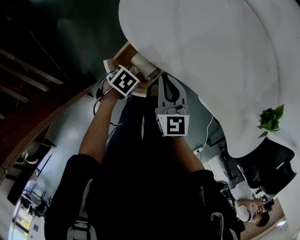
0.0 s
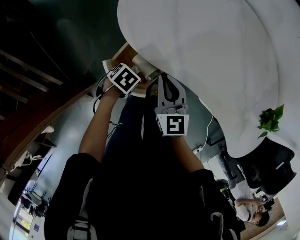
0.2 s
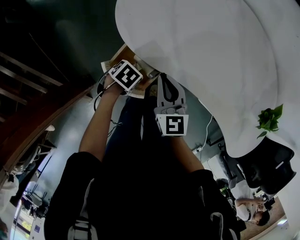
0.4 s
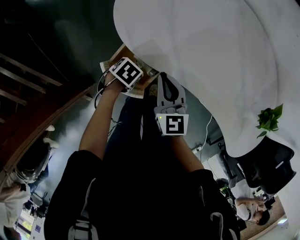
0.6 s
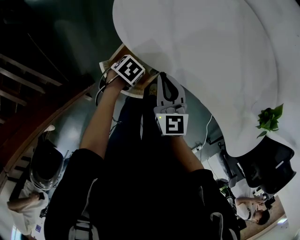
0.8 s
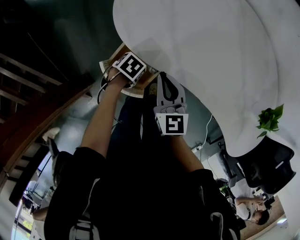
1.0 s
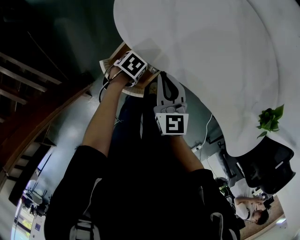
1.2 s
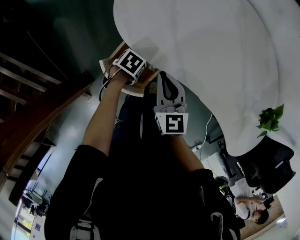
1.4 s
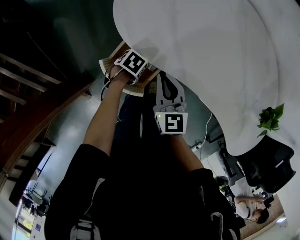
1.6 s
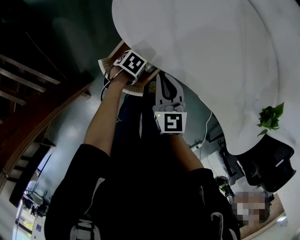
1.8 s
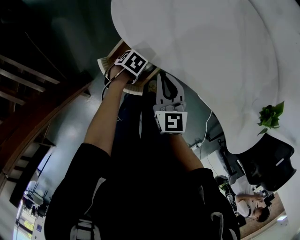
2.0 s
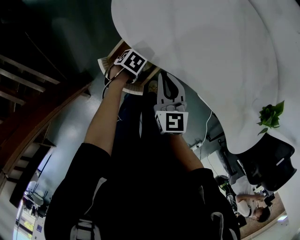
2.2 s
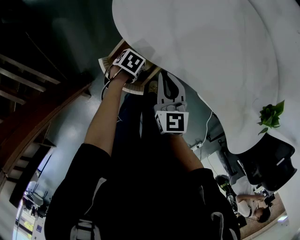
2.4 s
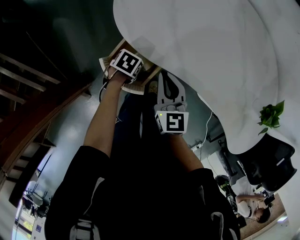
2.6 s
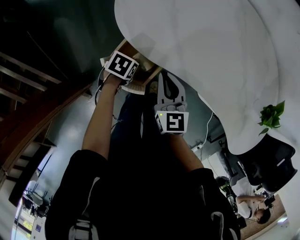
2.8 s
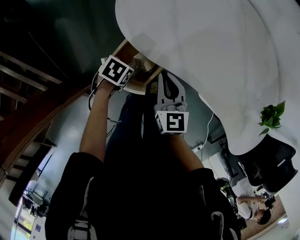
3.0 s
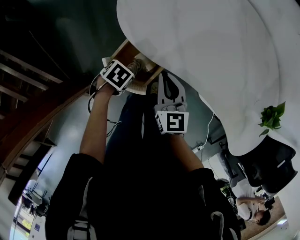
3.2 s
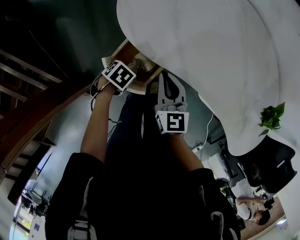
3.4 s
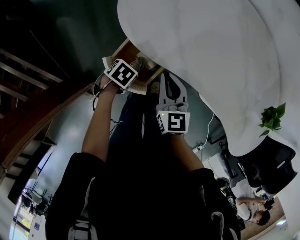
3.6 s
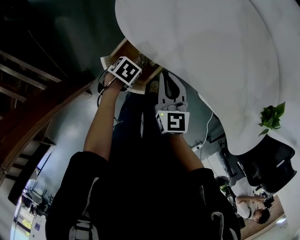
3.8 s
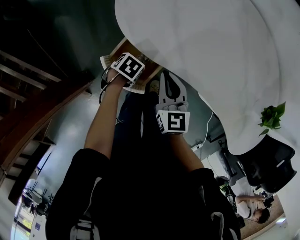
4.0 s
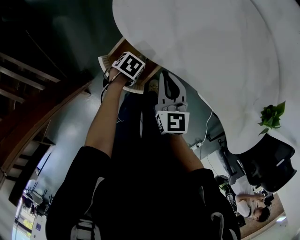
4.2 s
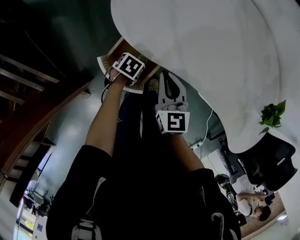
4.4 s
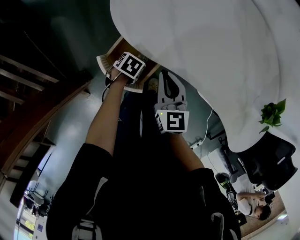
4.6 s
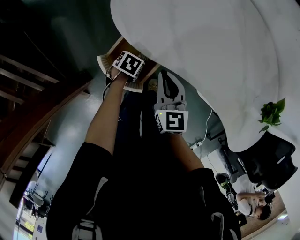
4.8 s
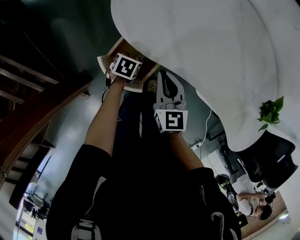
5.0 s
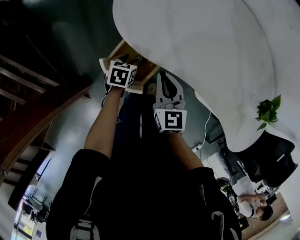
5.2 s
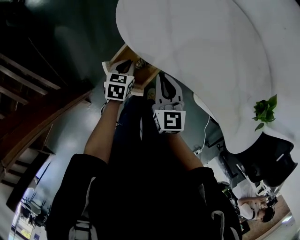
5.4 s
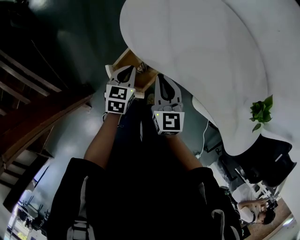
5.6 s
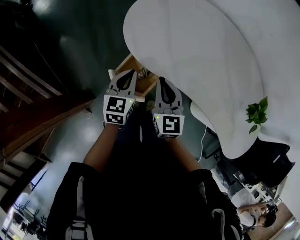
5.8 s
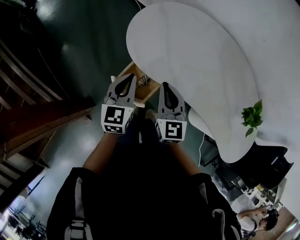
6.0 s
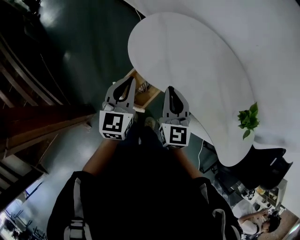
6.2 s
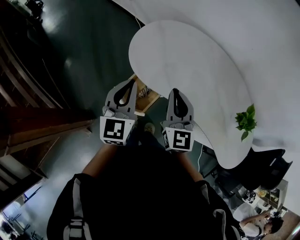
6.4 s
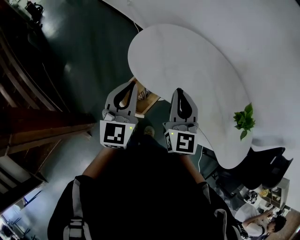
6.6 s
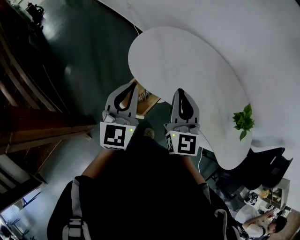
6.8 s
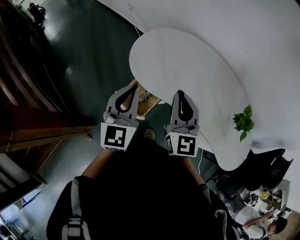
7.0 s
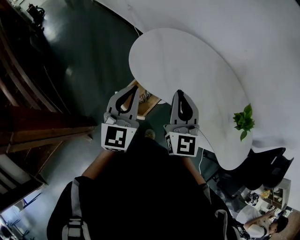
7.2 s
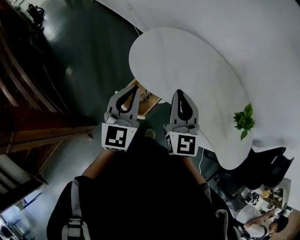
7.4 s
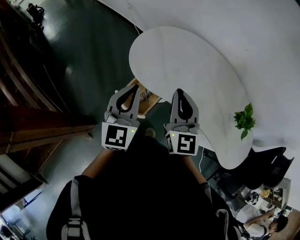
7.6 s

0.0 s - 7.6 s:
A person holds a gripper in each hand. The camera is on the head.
0.0 s - 1.6 s: The left gripper changes place by roughly 5 cm.
1.6 s - 3.0 s: The left gripper moves upward, approximately 5 cm.
3.0 s - 4.6 s: The left gripper shifts roughly 10 cm downward, and closes.
4.6 s - 6.0 s: The right gripper goes approximately 15 cm upward; the left gripper moves upward, roughly 35 cm, angles its fingers upward, by about 60 degrees, and closes up.
6.0 s - 7.6 s: The grippers both shift upward by some 15 cm.

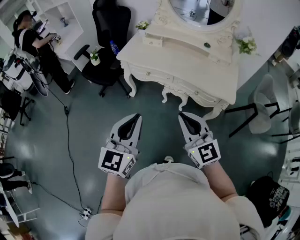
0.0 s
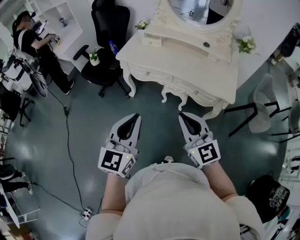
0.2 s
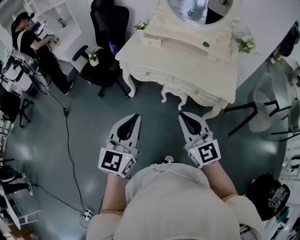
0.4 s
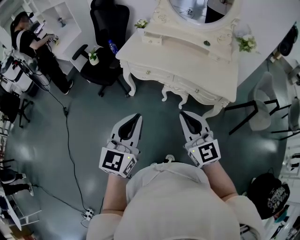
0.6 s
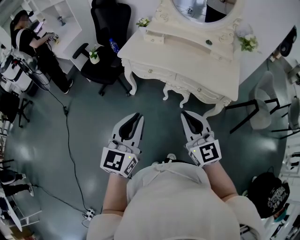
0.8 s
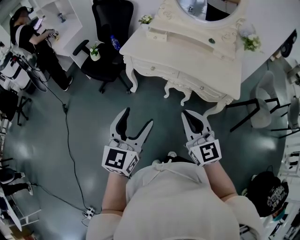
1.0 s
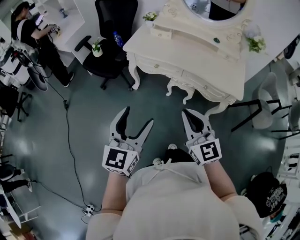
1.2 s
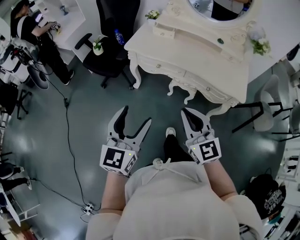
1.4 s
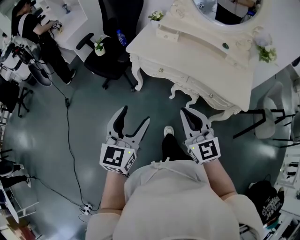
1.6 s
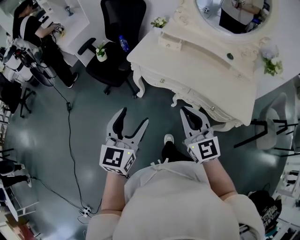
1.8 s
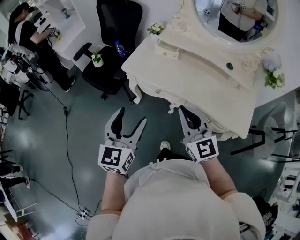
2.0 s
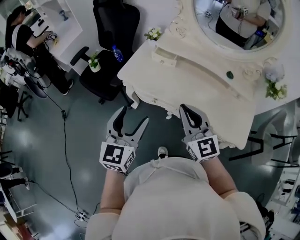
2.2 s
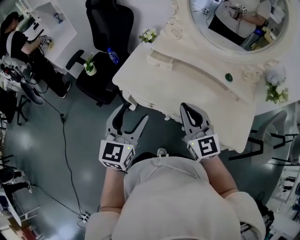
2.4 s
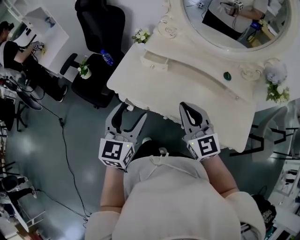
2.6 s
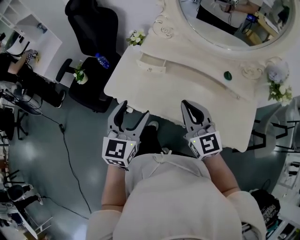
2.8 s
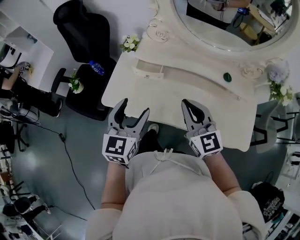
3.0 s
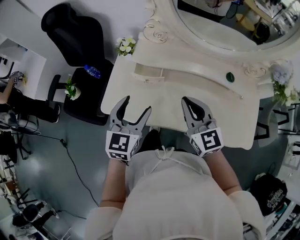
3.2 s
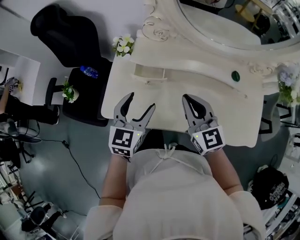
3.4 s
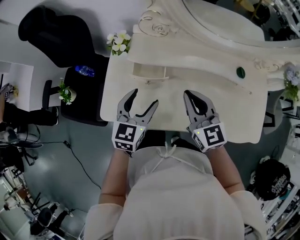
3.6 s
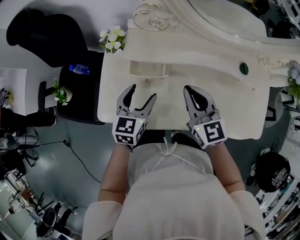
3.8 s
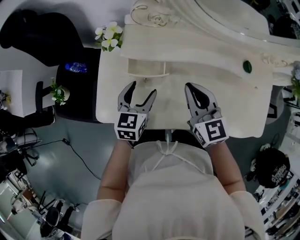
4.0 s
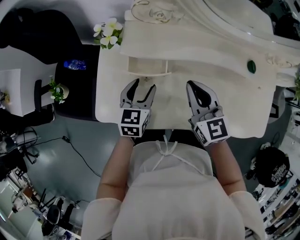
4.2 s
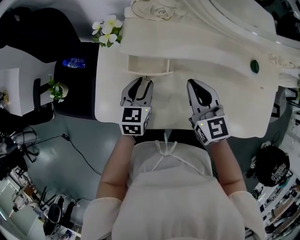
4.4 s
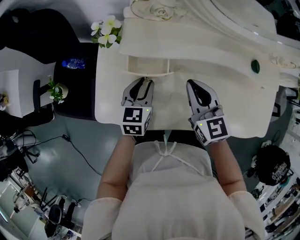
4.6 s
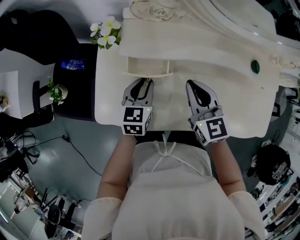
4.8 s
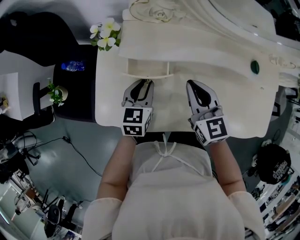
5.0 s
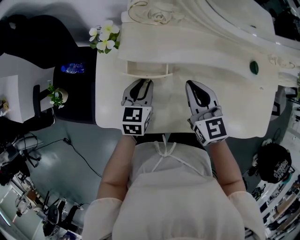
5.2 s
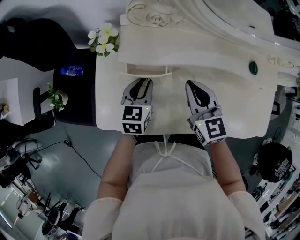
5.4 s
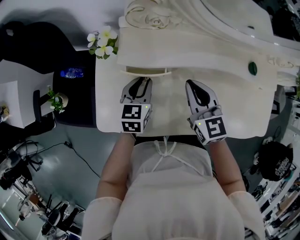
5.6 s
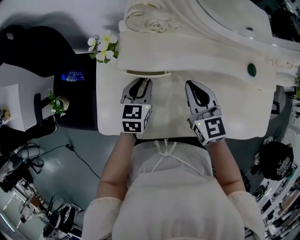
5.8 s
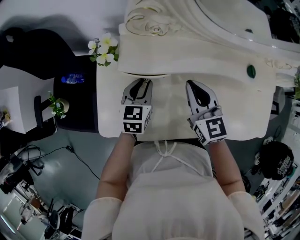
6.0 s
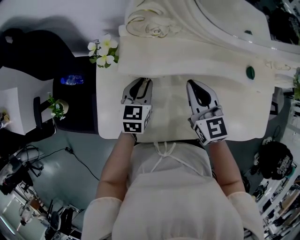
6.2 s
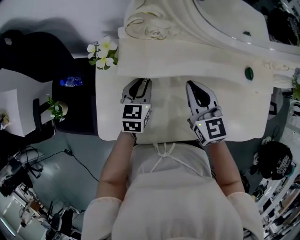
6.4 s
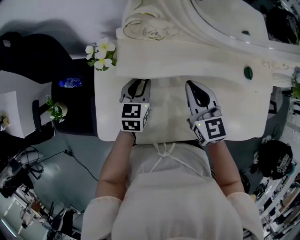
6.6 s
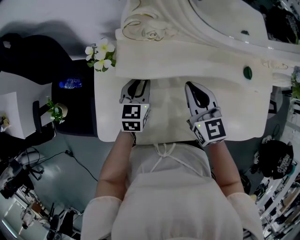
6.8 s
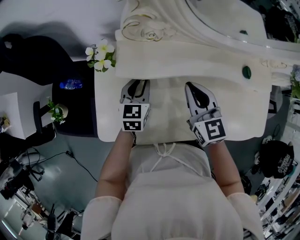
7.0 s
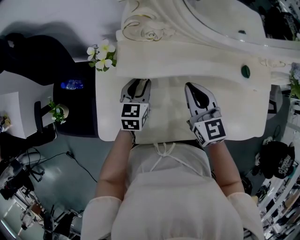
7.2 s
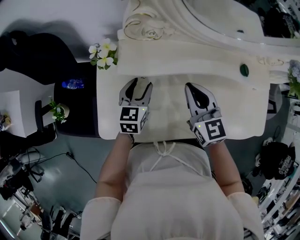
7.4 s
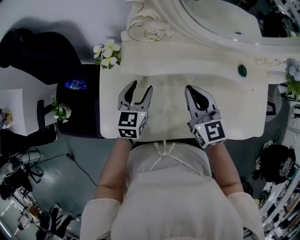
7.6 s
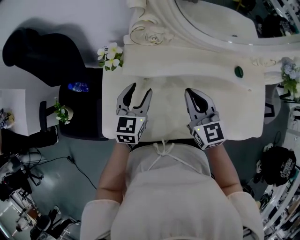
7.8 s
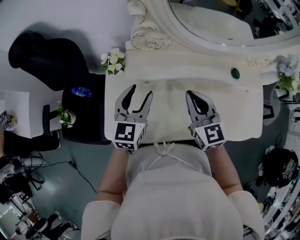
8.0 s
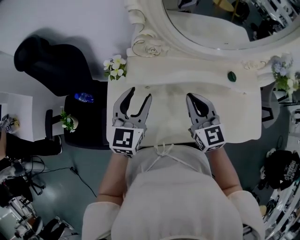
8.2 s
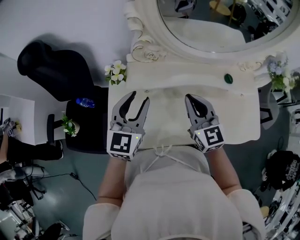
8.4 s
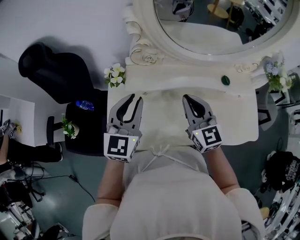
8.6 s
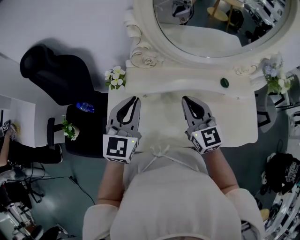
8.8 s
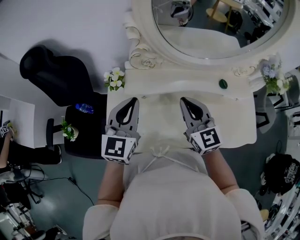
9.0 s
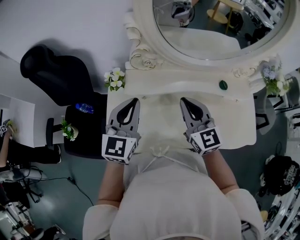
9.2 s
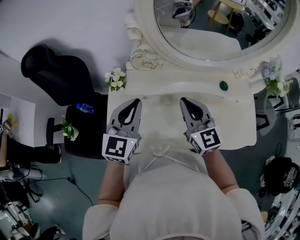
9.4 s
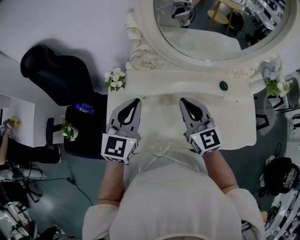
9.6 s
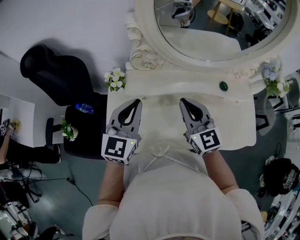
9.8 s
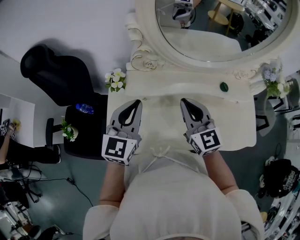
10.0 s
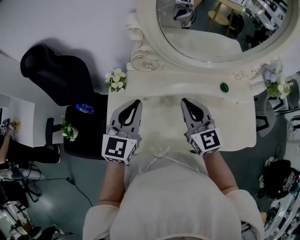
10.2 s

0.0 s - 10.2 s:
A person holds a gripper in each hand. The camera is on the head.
0.0 s - 1.4 s: The grippers both shift to the left by about 10 cm. The left gripper opens.
1.4 s - 3.0 s: The pair of grippers is taken forward, approximately 50 cm.
3.0 s - 4.4 s: The left gripper heads downward and forward, covering about 30 cm, turns by about 20 degrees, and closes up. Meanwhile the right gripper shifts approximately 20 cm forward and downward.
4.4 s - 5.8 s: The left gripper is displaced forward by about 5 cm.
5.8 s - 7.2 s: The grippers move only a little.
7.2 s - 8.8 s: The right gripper heads upward and backward, covering roughly 15 cm; the left gripper is displaced upward by roughly 25 cm, and rotates about 30 degrees.
8.8 s - 10.2 s: The grippers make only small movements.

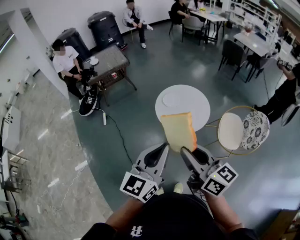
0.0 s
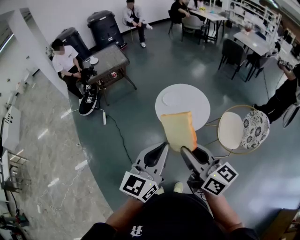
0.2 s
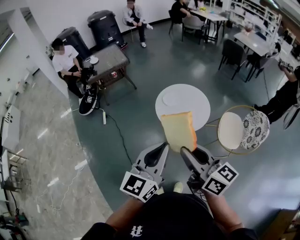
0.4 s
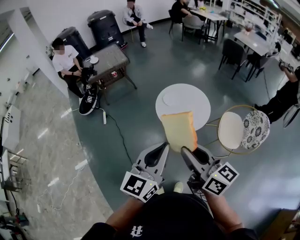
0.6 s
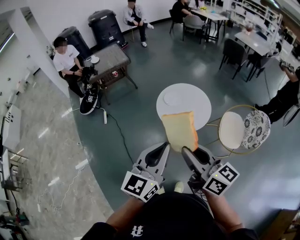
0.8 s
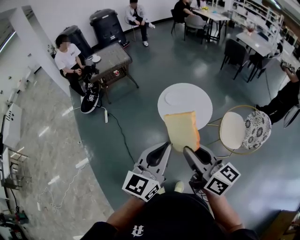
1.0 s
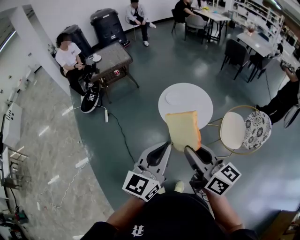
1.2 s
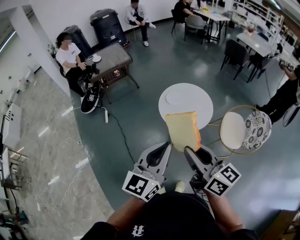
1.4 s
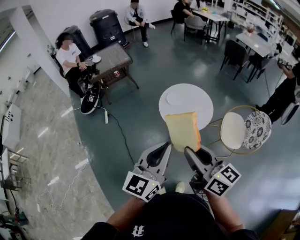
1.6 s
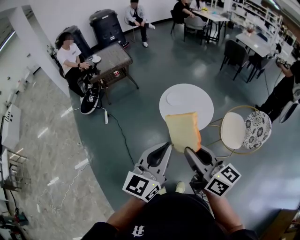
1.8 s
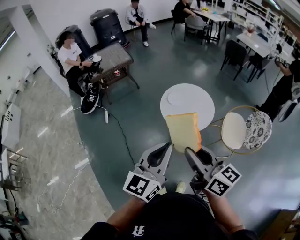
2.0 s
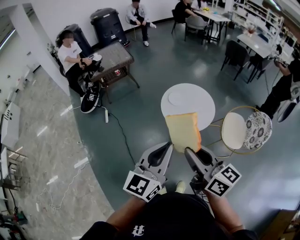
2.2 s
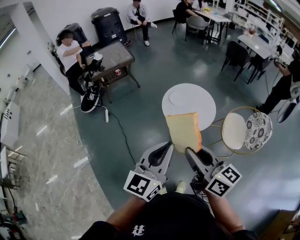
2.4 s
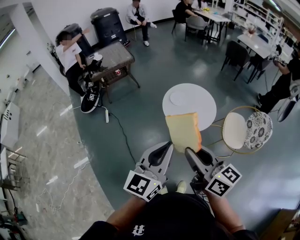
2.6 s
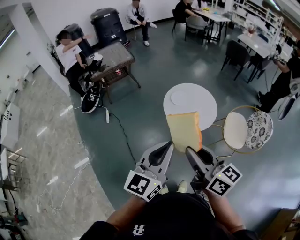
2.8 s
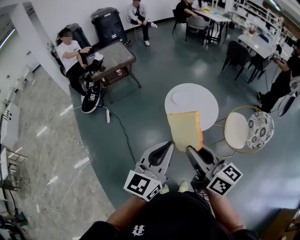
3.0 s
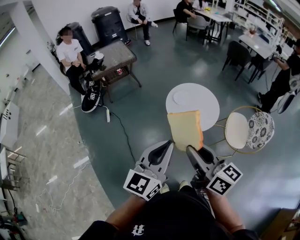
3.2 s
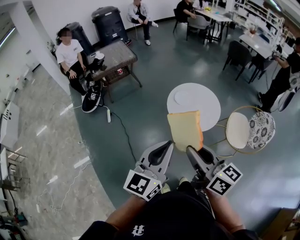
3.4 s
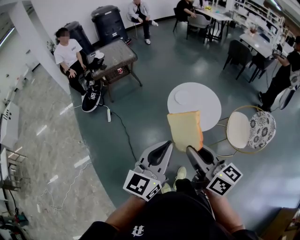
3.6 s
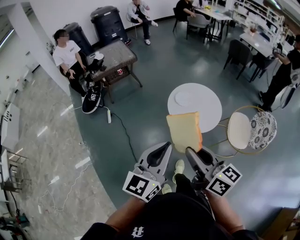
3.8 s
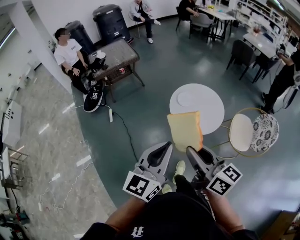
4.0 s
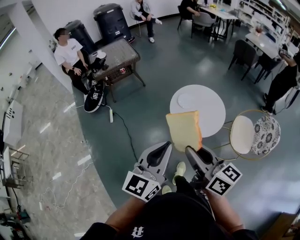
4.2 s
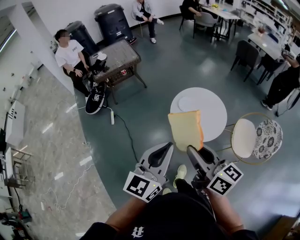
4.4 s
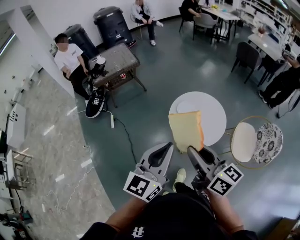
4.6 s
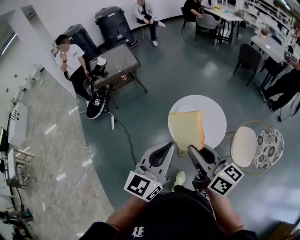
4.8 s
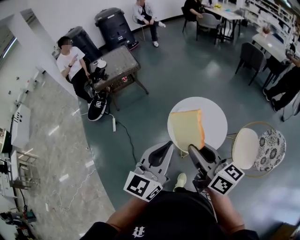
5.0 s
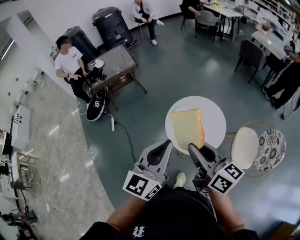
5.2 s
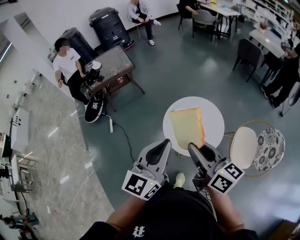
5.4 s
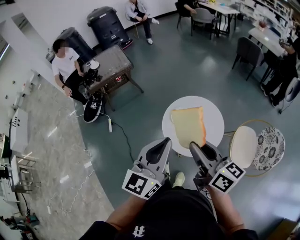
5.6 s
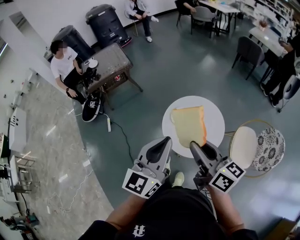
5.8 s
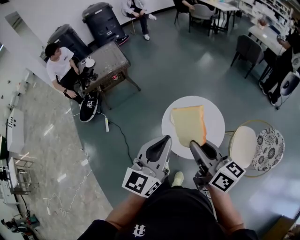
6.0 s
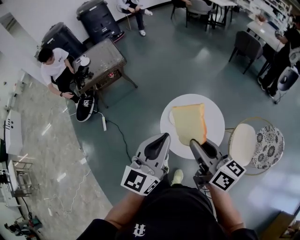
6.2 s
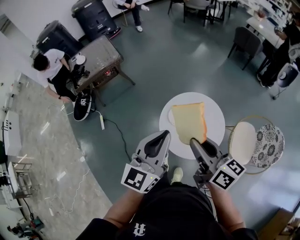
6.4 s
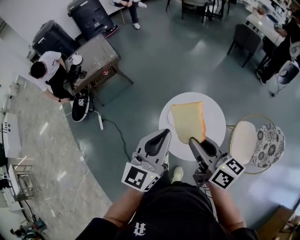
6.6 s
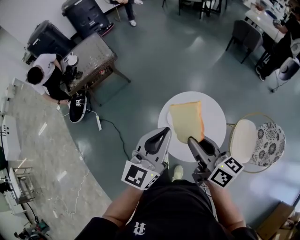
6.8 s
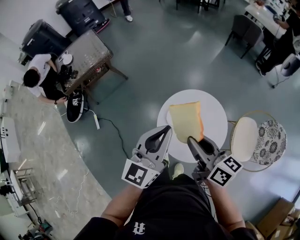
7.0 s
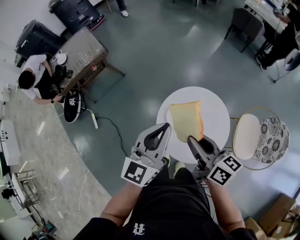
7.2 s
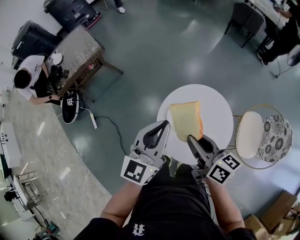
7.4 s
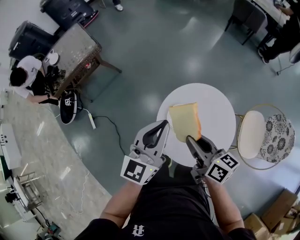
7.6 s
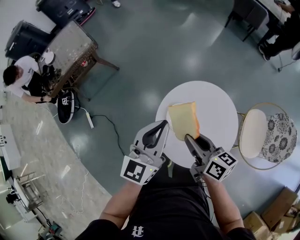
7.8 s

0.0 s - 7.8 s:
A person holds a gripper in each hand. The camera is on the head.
0.0 s - 1.6 s: There are only small adjustments of the grippers.
1.6 s - 3.2 s: Both grippers travel together to the left, roughly 5 cm.
3.2 s - 4.6 s: Both grippers travel together forward, roughly 15 cm.
4.6 s - 6.2 s: Both grippers travel together forward, roughly 20 cm.
6.2 s - 7.8 s: Both grippers travel together downward and forward, about 30 cm.
